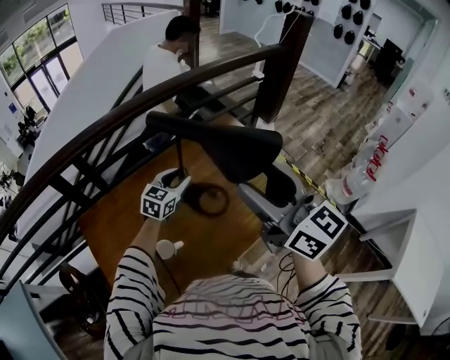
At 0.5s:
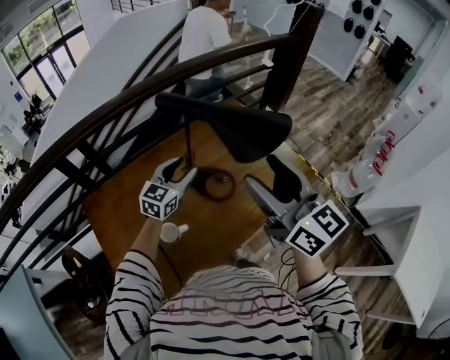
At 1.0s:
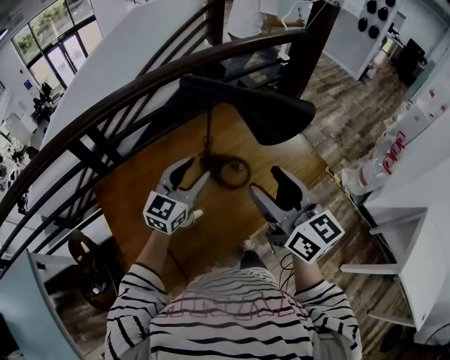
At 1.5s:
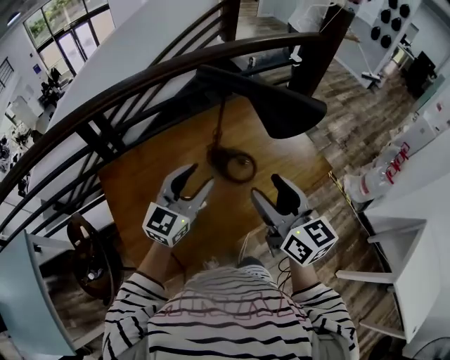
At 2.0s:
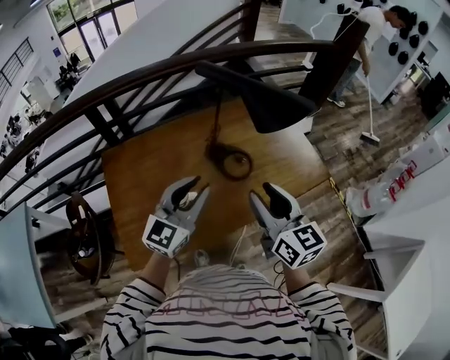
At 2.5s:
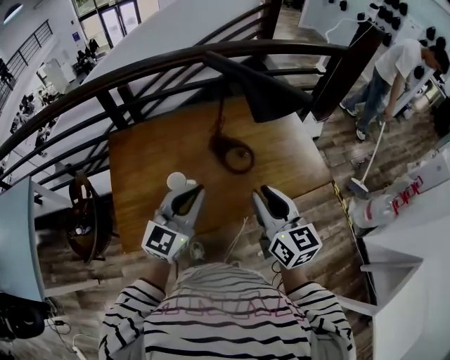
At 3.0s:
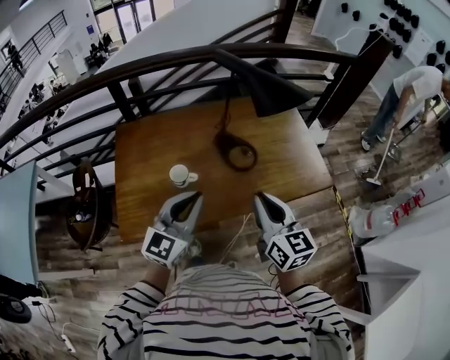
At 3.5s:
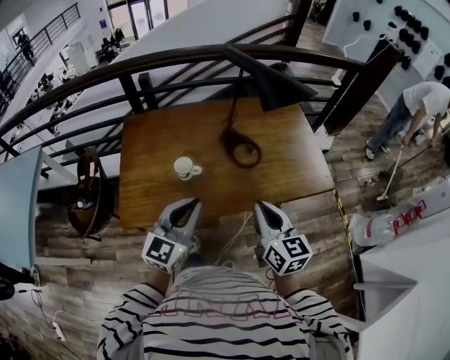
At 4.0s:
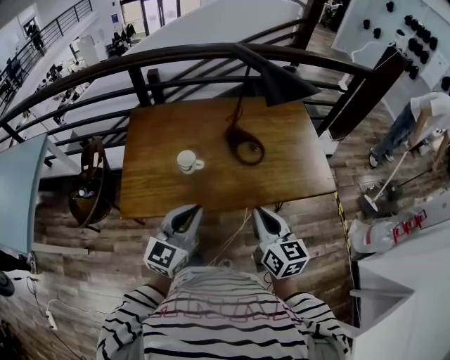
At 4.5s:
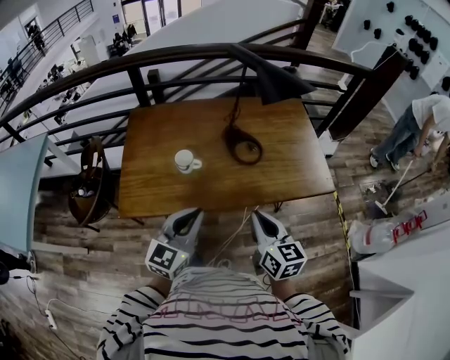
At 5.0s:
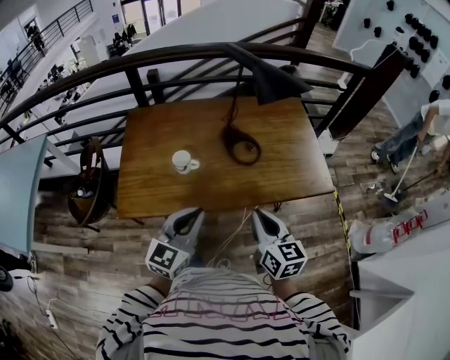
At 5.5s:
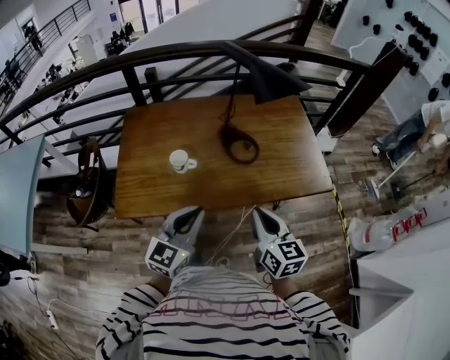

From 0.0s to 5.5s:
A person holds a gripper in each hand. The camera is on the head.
From 0.0s to 2.0s: The right gripper shifts roughly 15 cm downward and backward, and closes its fingers, while the left gripper goes some 30 cm backward and upward, and turns by roughly 20 degrees.
From 2.0s to 3.5s: The right gripper travels backward and downward by some 15 cm, and closes its fingers. Meanwhile the left gripper is displaced backward by roughly 15 cm, and closes its fingers.
From 3.5s to 5.5s: The right gripper shifts by some 5 cm, while the left gripper moves roughly 5 cm.

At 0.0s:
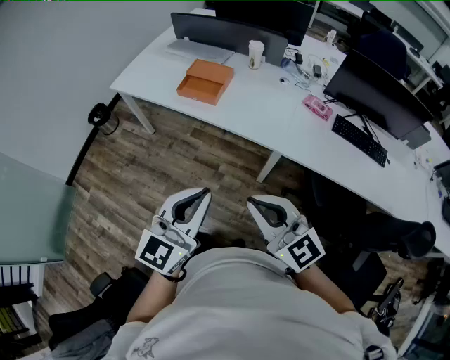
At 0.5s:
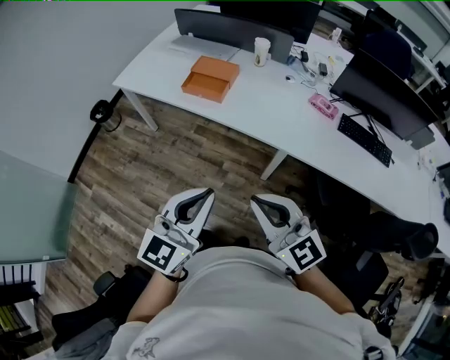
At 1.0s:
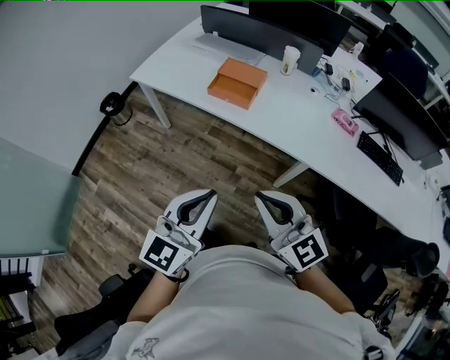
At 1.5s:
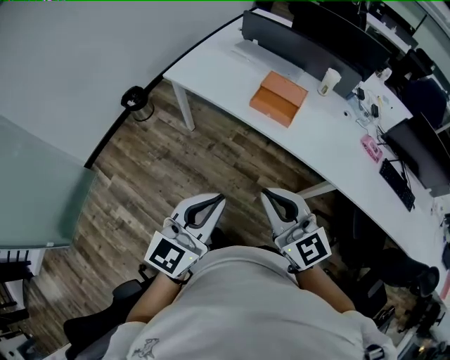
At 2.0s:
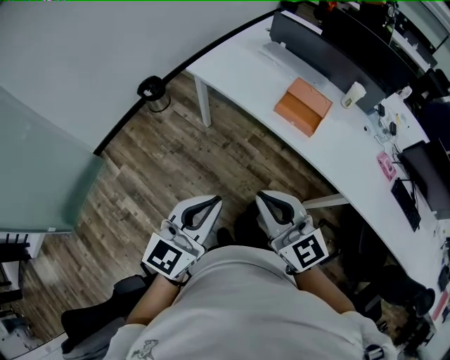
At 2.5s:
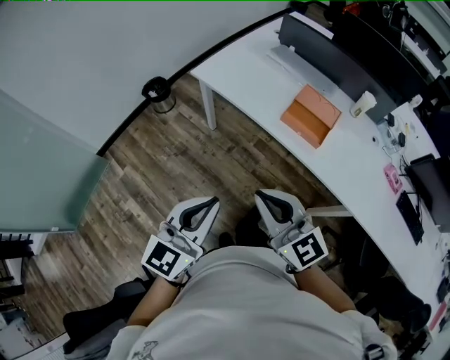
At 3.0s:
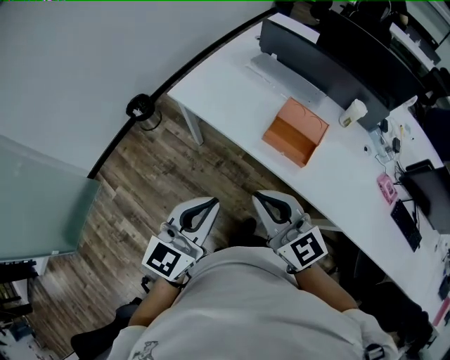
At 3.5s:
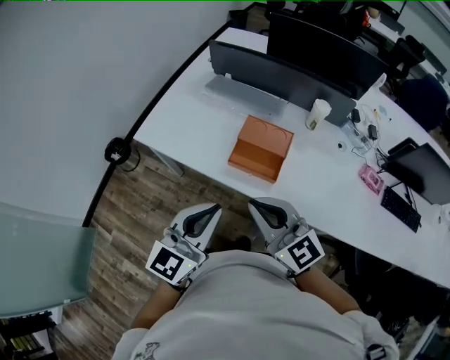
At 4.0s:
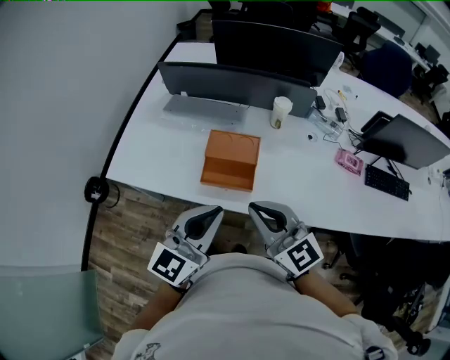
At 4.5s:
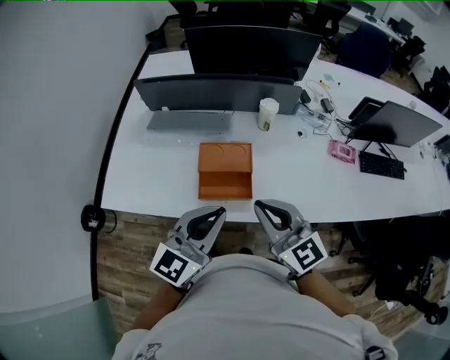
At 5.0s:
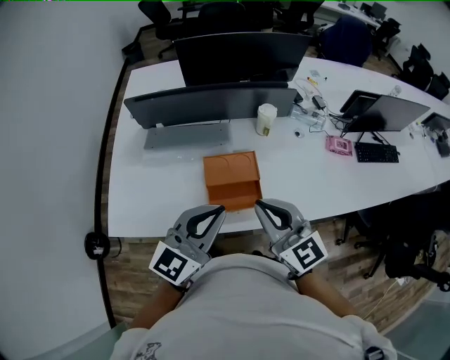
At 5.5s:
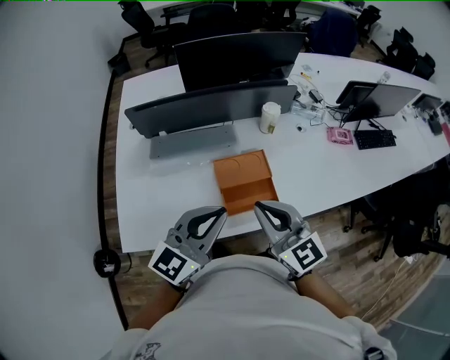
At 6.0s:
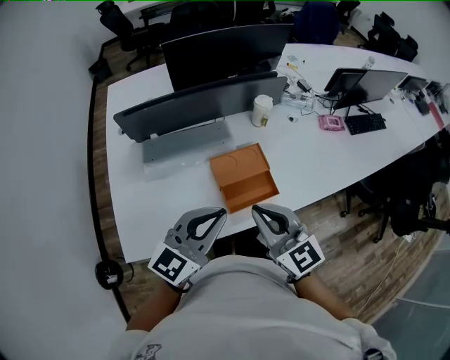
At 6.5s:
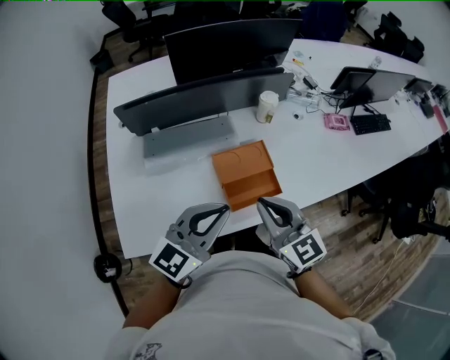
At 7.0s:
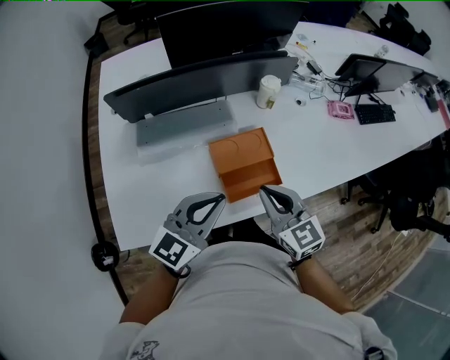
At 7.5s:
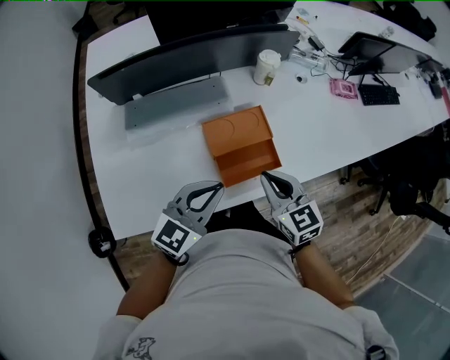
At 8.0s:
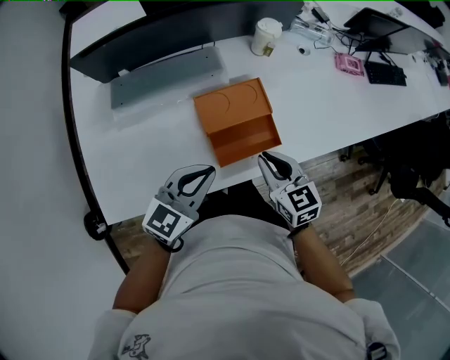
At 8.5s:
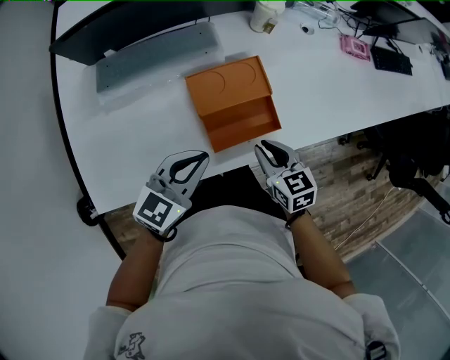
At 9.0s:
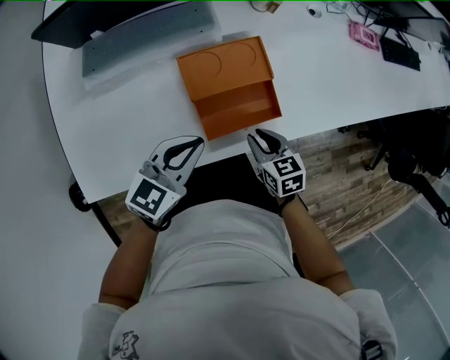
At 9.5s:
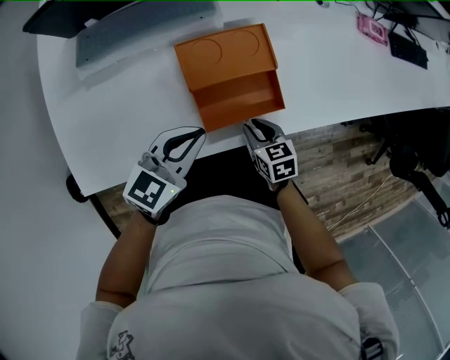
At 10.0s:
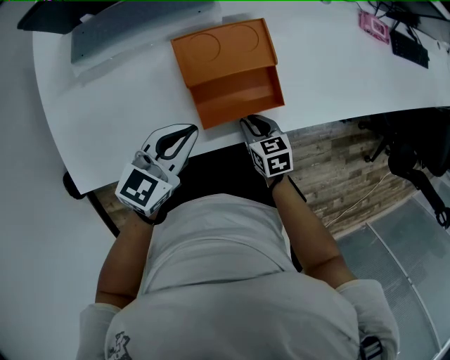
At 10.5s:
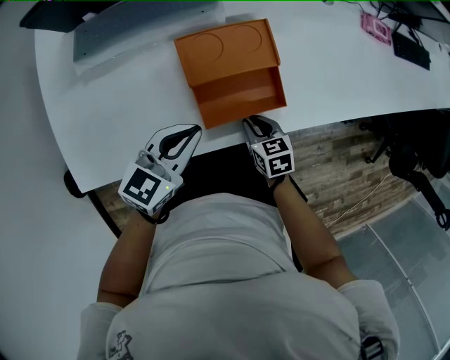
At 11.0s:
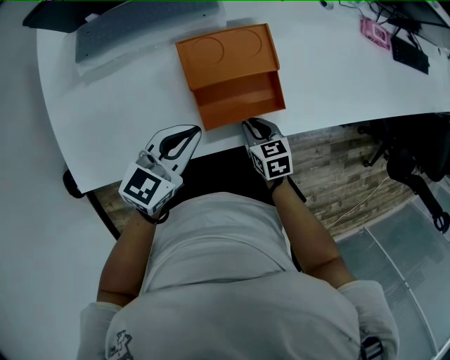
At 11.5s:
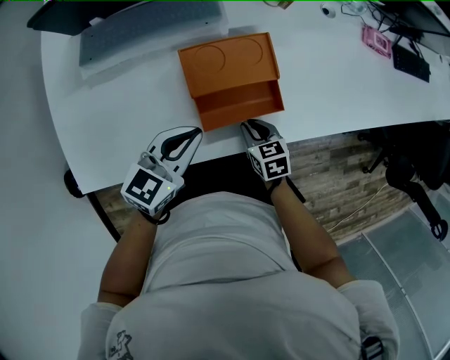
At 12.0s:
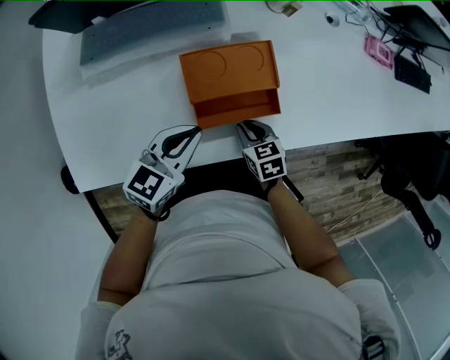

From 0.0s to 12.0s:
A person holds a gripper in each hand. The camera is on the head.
From 0.0s to 2.0s: The two grippers travel together, to the left and forward, about 40 cm.
From 2.0s to 4.0s: The right gripper changes place by some 40 cm, and rotates approximately 20 degrees. Meanwhile the left gripper changes place by about 40 cm, and swivels about 30 degrees.
From 4.0s to 6.0s: The left gripper shifts by some 25 cm, and rotates about 30 degrees. The right gripper moves roughly 20 cm, and swivels roughly 30 degrees.
From 6.0s to 8.0s: The left gripper is displaced downward by some 20 cm; the right gripper is displaced downward and forward by some 25 cm, and swivels some 30 degrees.
From 8.0s to 10.0s: The left gripper goes approximately 10 cm downward; the right gripper shifts roughly 25 cm downward, and swivels about 20 degrees.
From 10.0s to 12.0s: There are only small adjustments of the grippers.

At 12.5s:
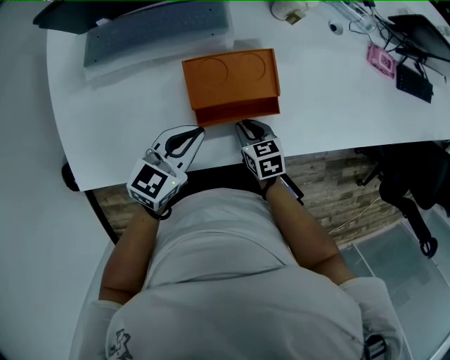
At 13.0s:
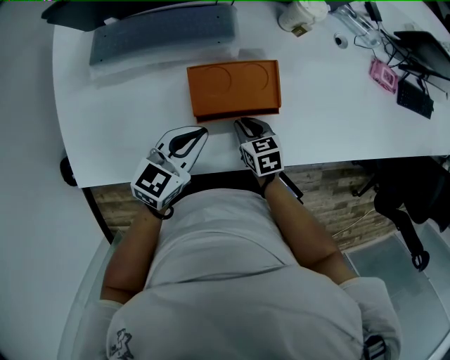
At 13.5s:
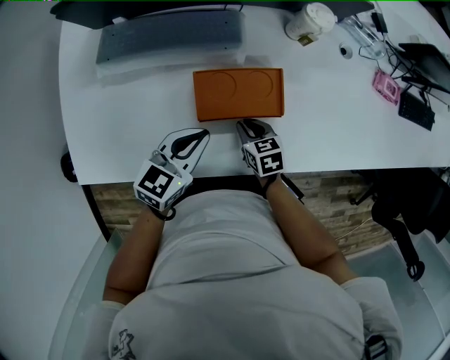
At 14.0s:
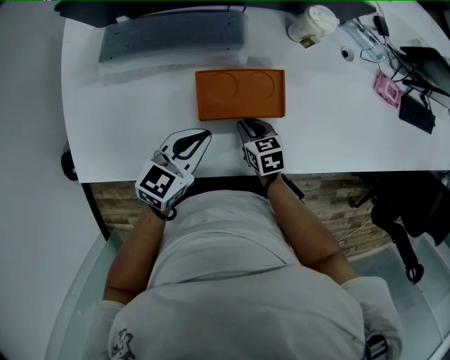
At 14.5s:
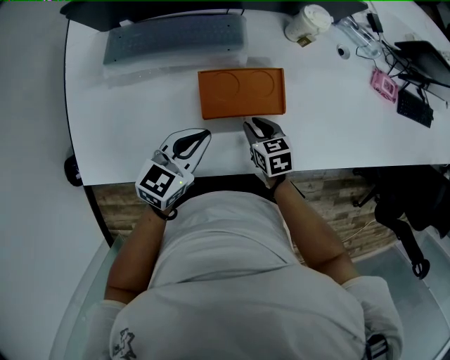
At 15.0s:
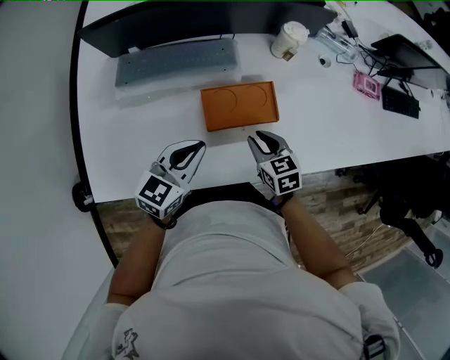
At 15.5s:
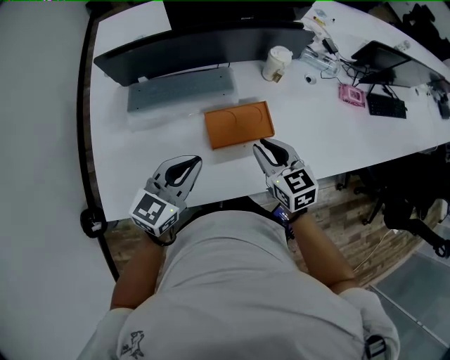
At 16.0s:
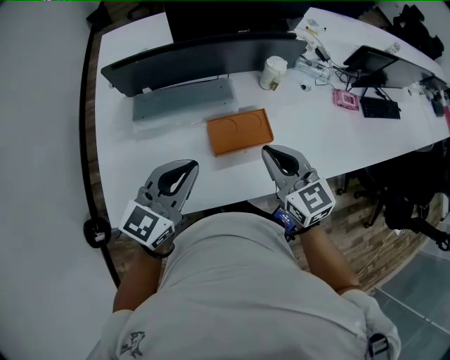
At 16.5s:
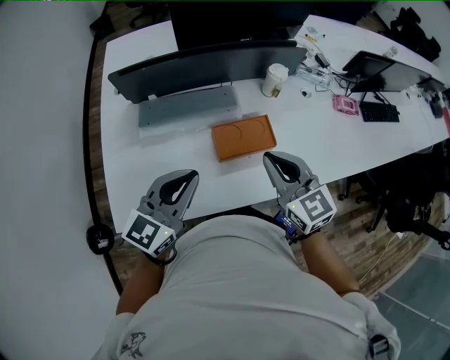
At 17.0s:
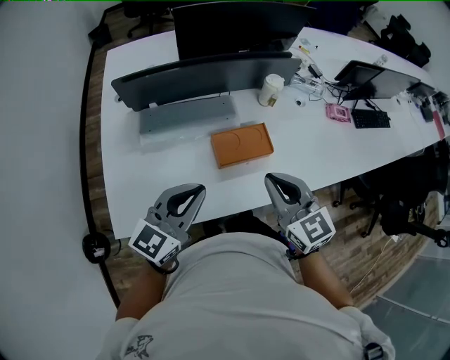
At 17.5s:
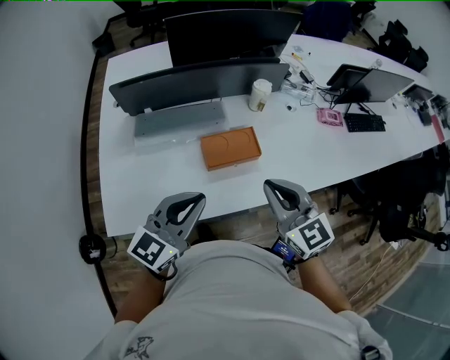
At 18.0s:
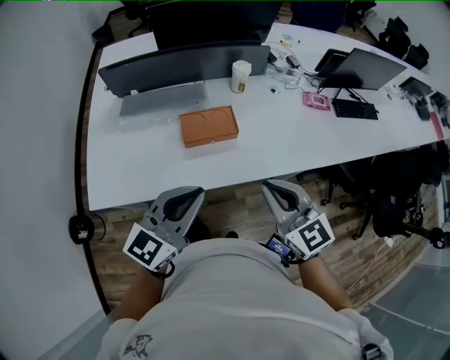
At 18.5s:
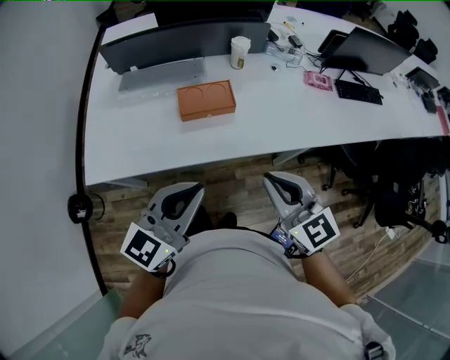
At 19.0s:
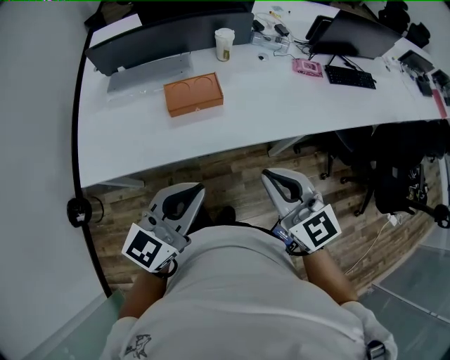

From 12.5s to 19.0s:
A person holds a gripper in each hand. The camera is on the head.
From 12.5s to 14.5s: The right gripper heads forward, covering roughly 5 cm.
From 14.5s to 17.0s: The right gripper shifts roughly 40 cm upward, tips its fingers upward by roughly 40 degrees, and closes; the left gripper shifts roughly 30 cm upward and backward, and swivels roughly 30 degrees.
From 17.0s to 19.0s: The grippers both shift to the right and backward by approximately 35 cm.

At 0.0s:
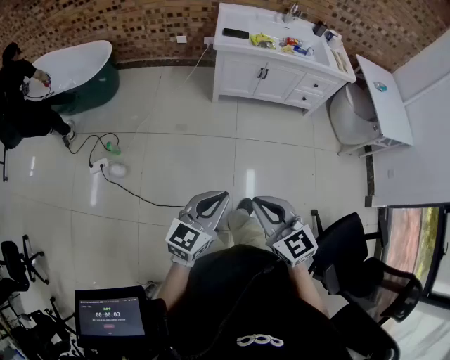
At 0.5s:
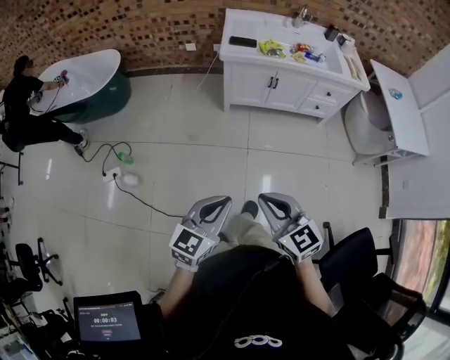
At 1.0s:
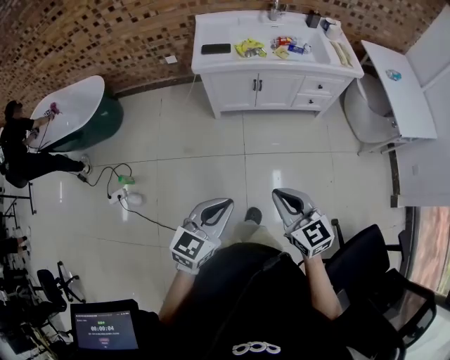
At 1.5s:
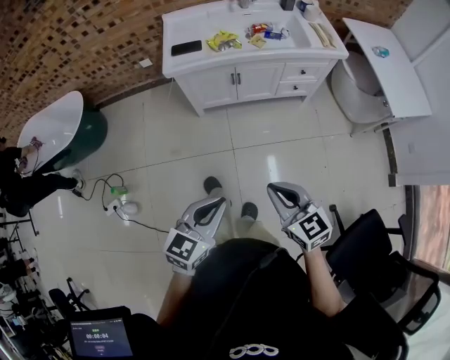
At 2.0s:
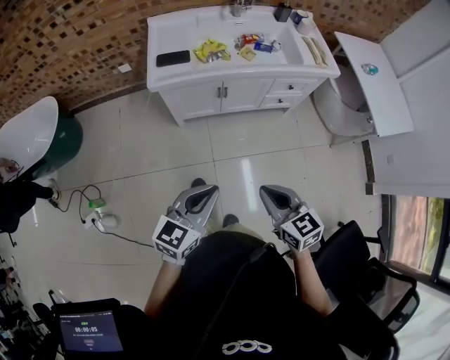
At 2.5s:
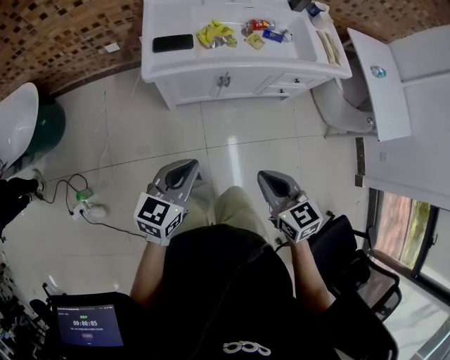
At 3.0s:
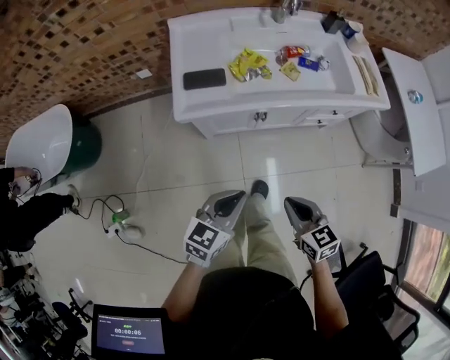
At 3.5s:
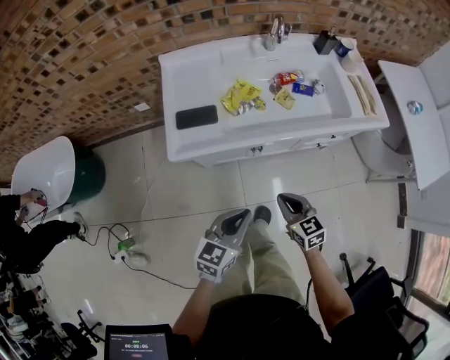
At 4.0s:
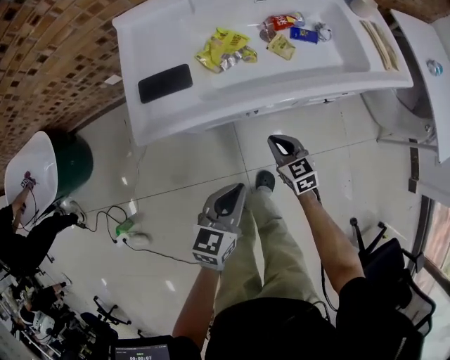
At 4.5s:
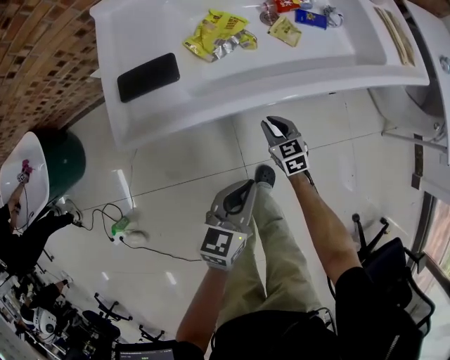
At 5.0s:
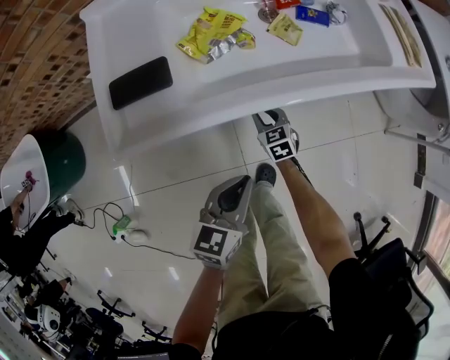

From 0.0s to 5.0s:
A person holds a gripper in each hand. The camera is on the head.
From 0.0s to 2.5s: Both grippers are carried forward, approximately 50 cm. The right gripper rotates some 30 degrees.
From 2.5s to 5.0s: The left gripper is displaced downward, forward and to the right by about 35 cm. The right gripper shifts approximately 60 cm downward and forward, and opens its fingers.
